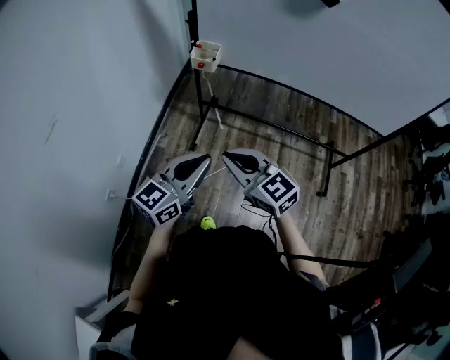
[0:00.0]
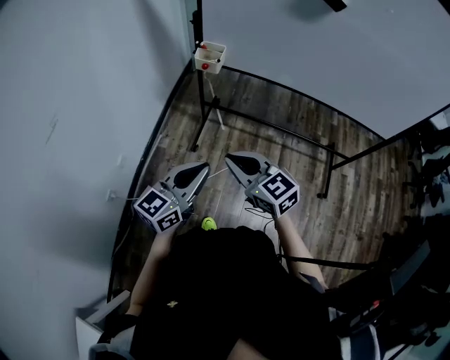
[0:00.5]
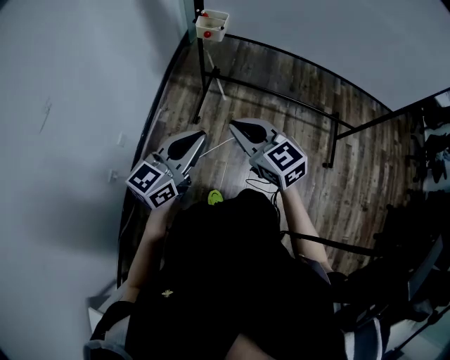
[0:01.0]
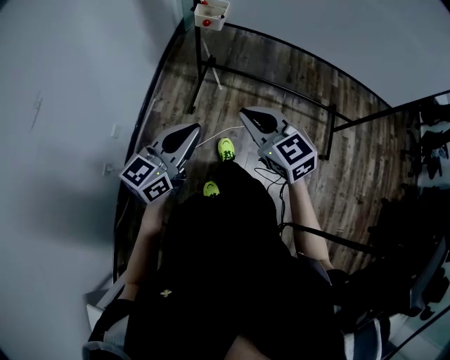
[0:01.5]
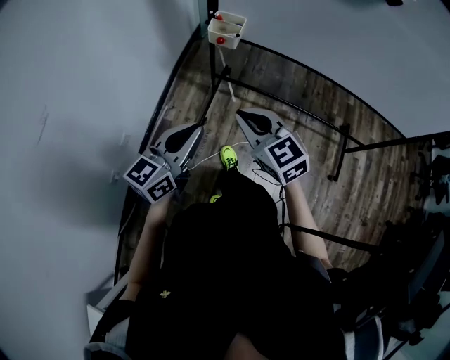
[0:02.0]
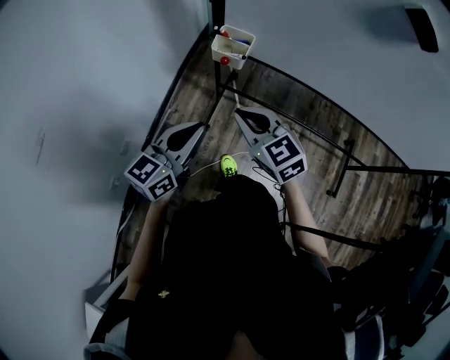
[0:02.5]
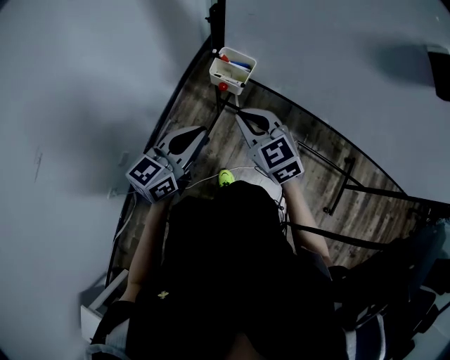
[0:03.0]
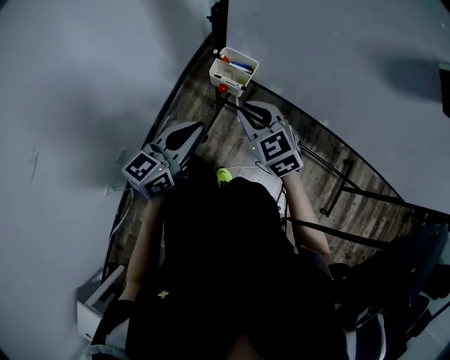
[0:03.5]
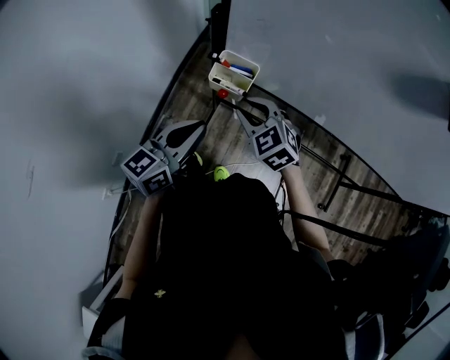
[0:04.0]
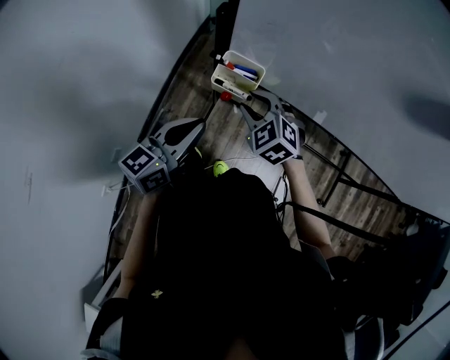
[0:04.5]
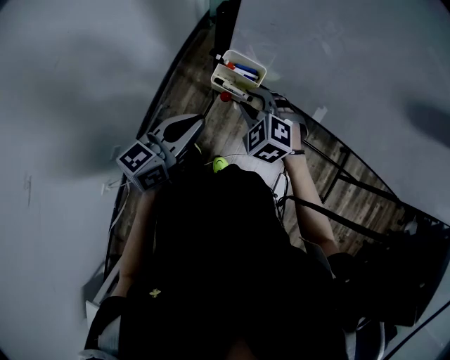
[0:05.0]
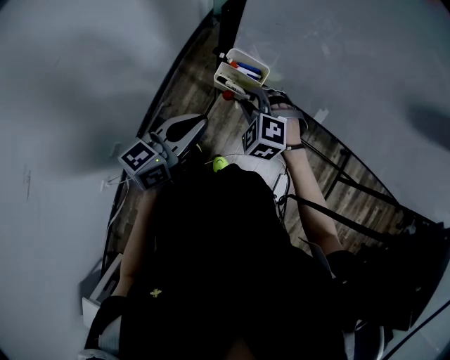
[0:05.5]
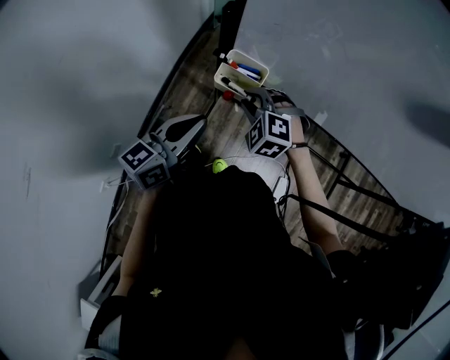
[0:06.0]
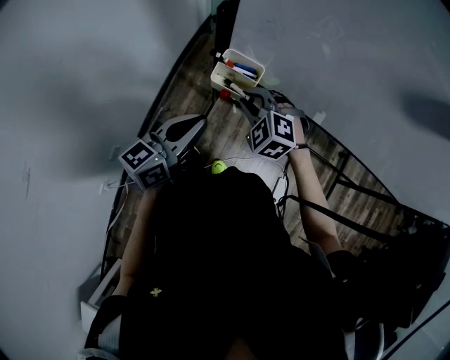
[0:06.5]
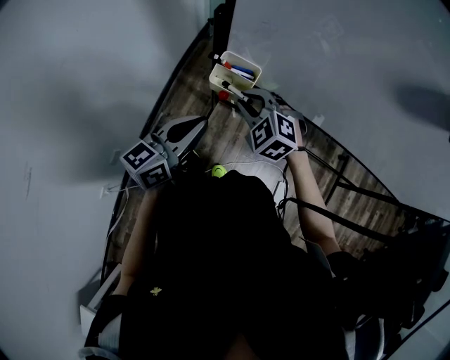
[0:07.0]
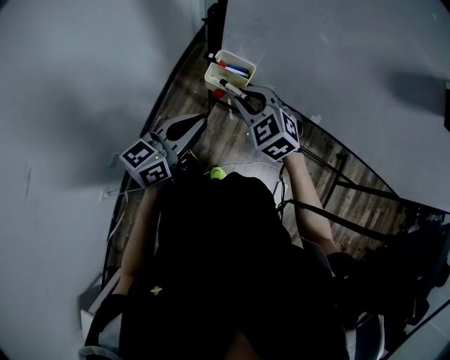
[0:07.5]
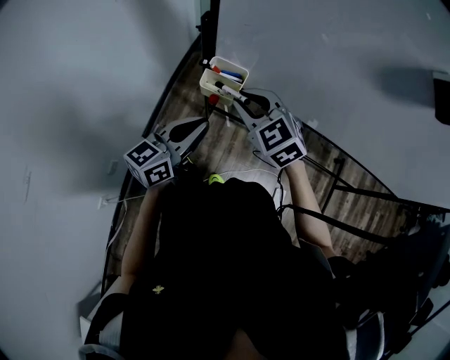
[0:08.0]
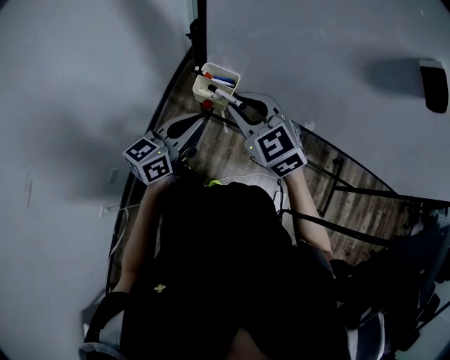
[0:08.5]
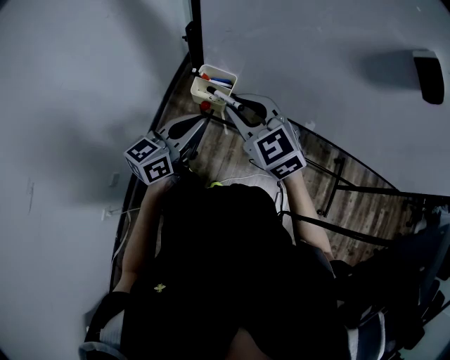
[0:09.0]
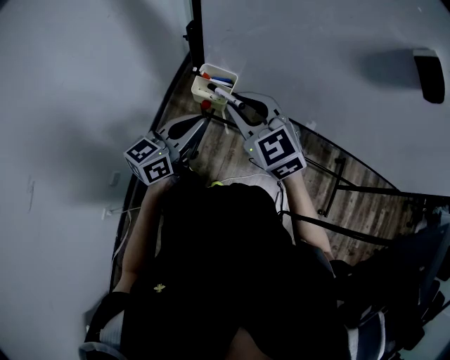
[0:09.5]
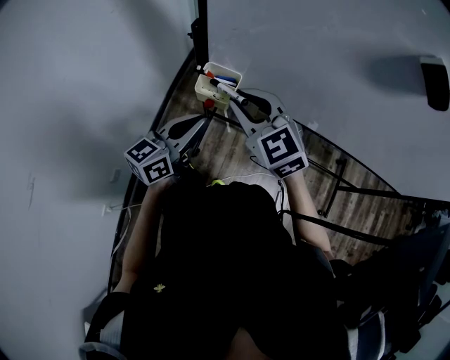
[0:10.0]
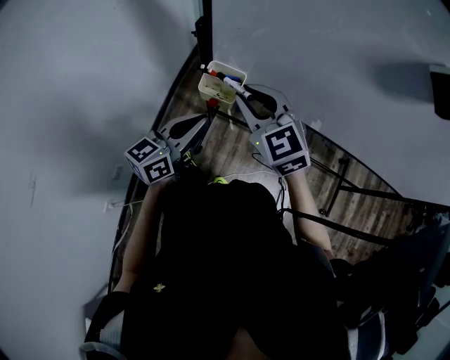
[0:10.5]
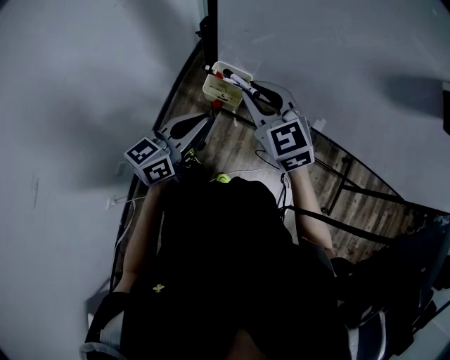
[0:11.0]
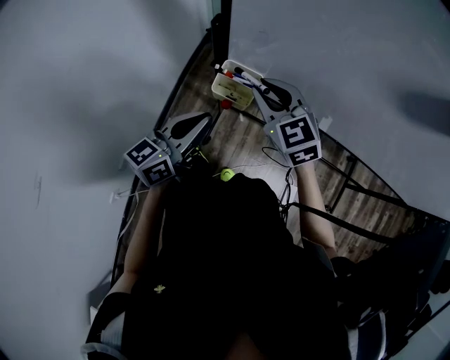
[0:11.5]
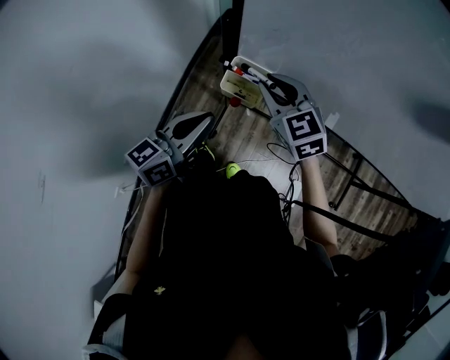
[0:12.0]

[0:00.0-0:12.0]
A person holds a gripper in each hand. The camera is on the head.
0:00.0 to 0:02.0: The left gripper is displaced forward and to the left by approximately 15 cm; the right gripper travels forward by roughly 15 cm.
0:02.0 to 0:04.0: The grippers both shift forward by some 25 cm. The right gripper turns by approximately 20 degrees.
0:04.0 to 0:06.0: The right gripper moves roughly 5 cm, and changes its angle by approximately 30 degrees.
0:06.0 to 0:08.0: The right gripper travels upward by some 10 cm, and turns by some 30 degrees.
0:08.0 to 0:10.0: The right gripper heads upward, covering approximately 5 cm.
0:10.0 to 0:12.0: The left gripper shifts by some 5 cm; the right gripper goes about 10 cm forward and downward.

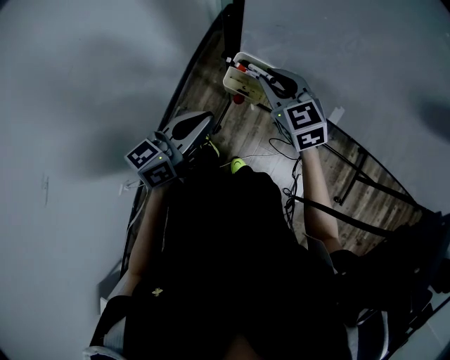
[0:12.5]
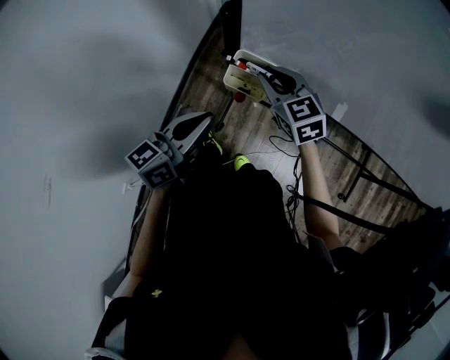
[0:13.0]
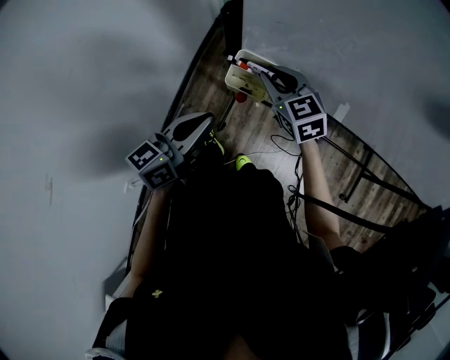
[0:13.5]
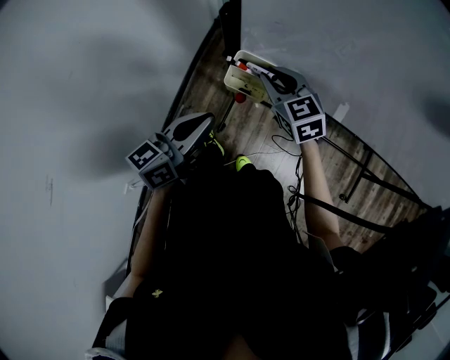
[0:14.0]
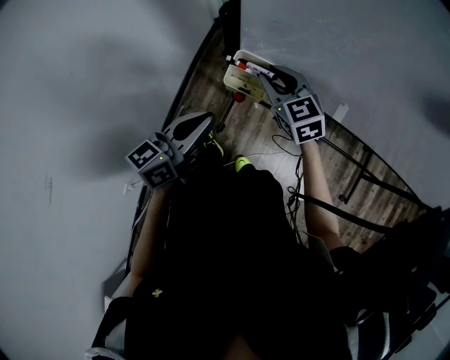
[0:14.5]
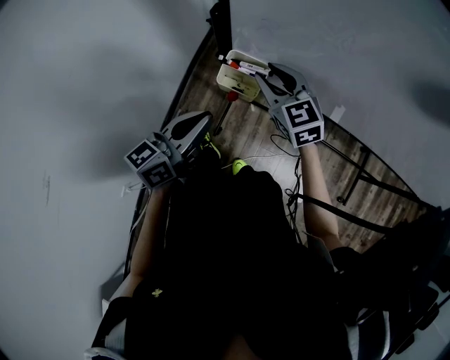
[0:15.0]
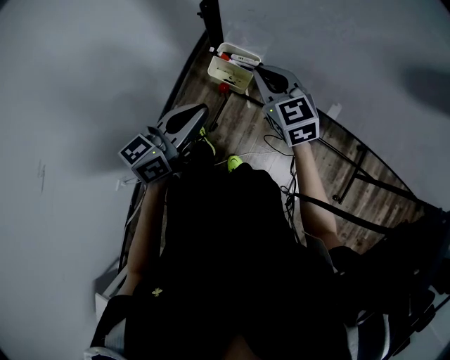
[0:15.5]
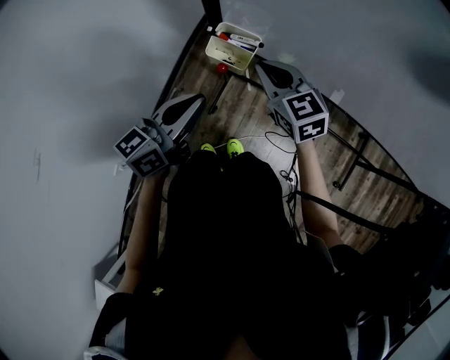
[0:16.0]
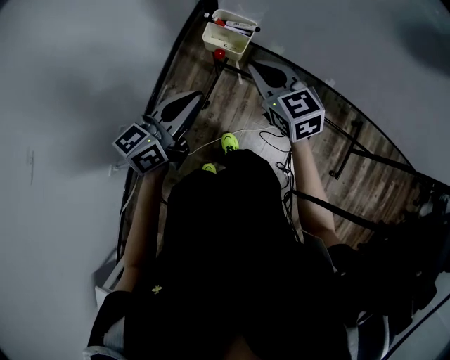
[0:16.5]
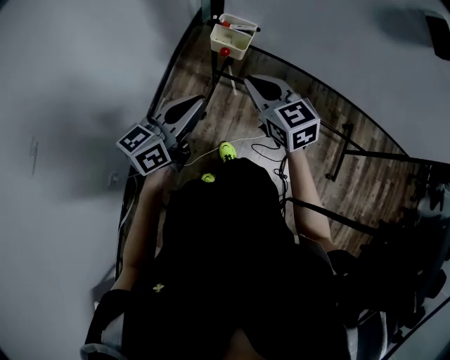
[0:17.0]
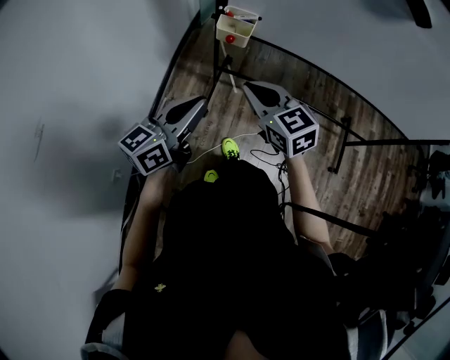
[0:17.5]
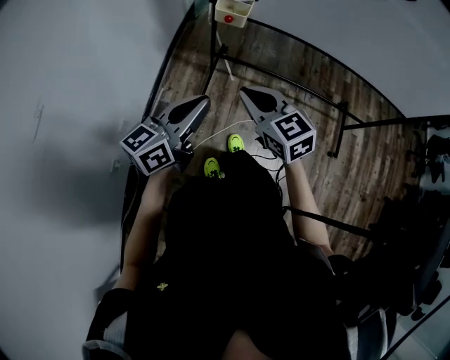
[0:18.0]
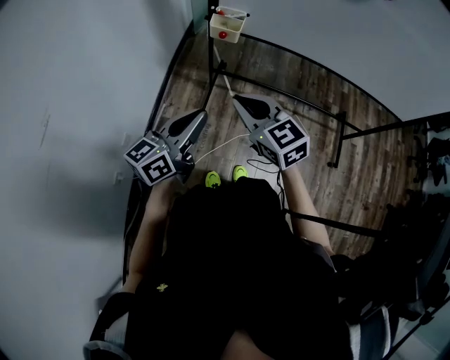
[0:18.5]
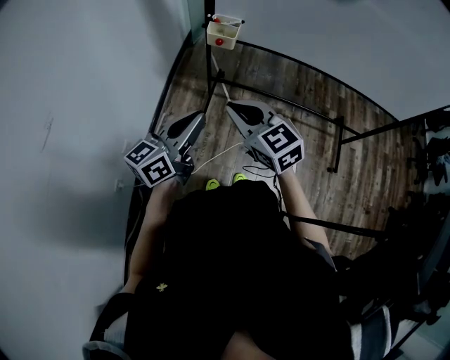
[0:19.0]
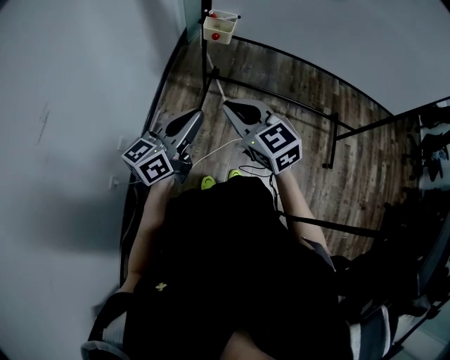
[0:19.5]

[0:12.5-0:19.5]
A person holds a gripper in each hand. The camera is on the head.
0:12.5 to 0:14.5: The grippers stay close to where they were, moving slightly.
0:14.5 to 0:16.0: The left gripper moves about 5 cm, while the right gripper goes about 5 cm backward, and closes.
0:16.0 to 0:17.5: Both grippers travel together backward, approximately 20 cm.
0:17.5 to 0:19.5: Both grippers move backward, roughly 10 cm.

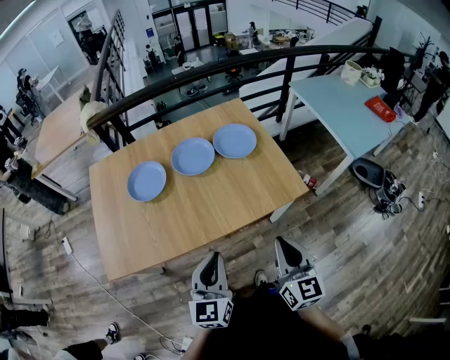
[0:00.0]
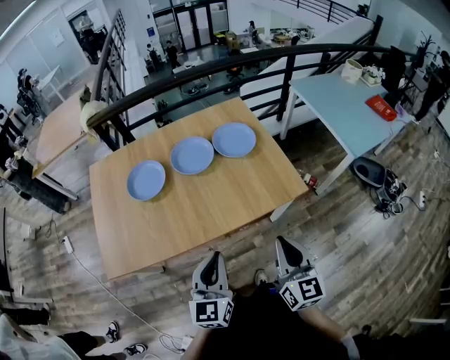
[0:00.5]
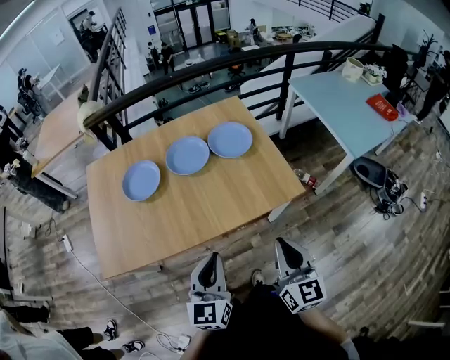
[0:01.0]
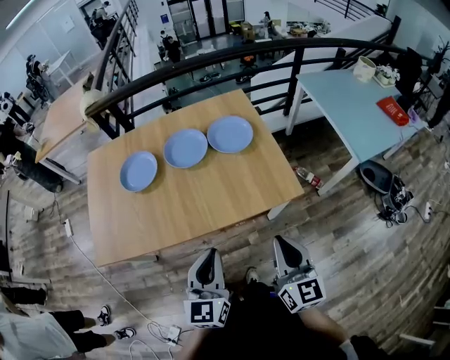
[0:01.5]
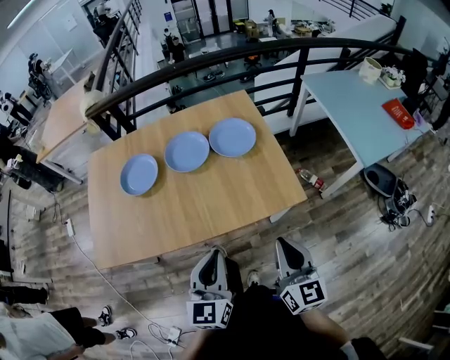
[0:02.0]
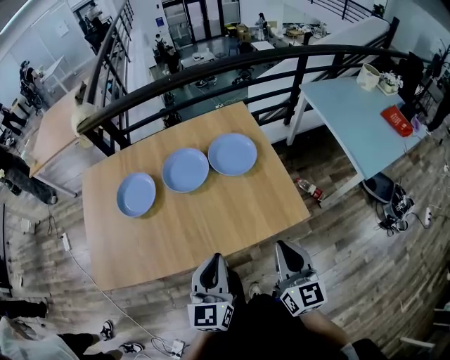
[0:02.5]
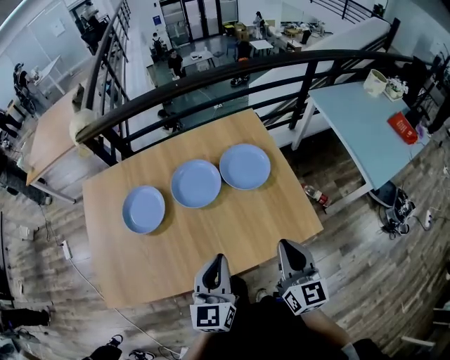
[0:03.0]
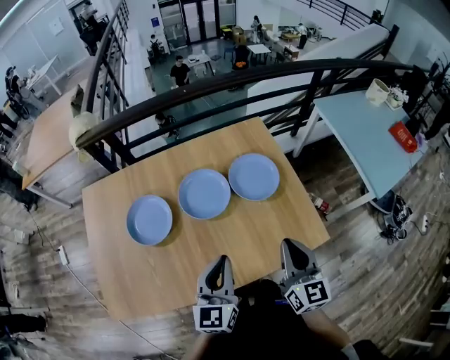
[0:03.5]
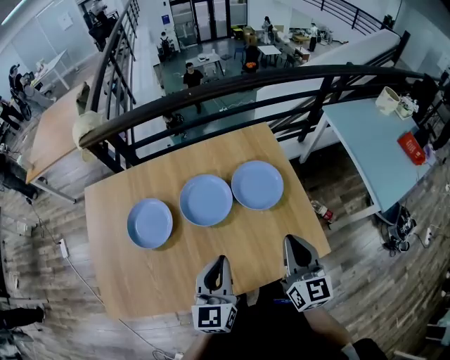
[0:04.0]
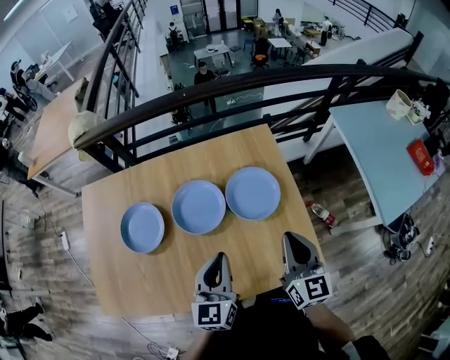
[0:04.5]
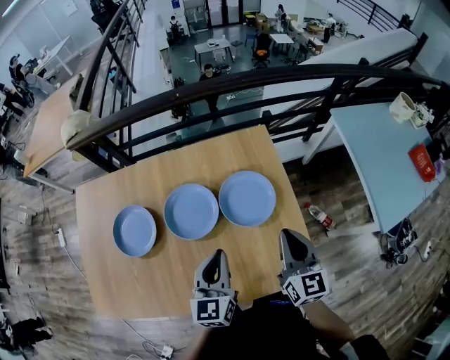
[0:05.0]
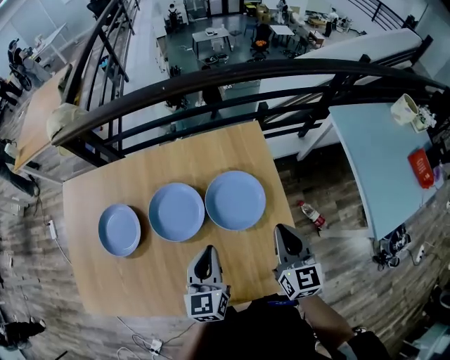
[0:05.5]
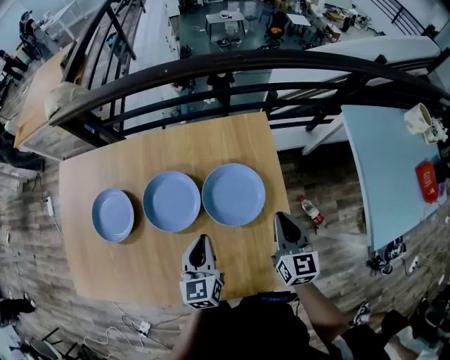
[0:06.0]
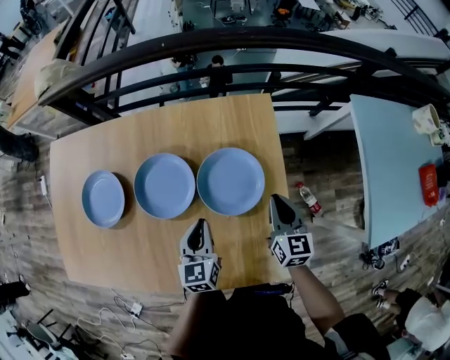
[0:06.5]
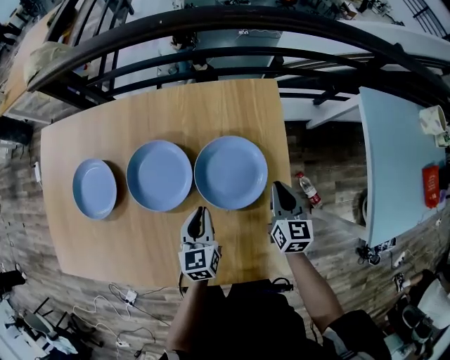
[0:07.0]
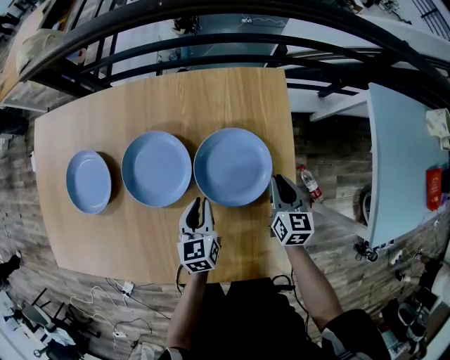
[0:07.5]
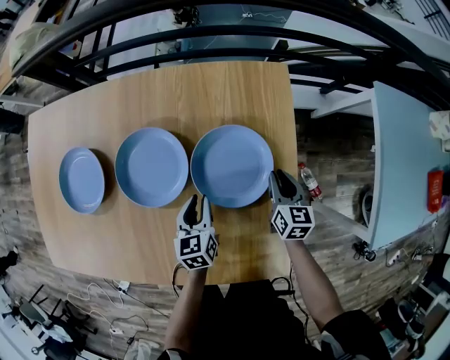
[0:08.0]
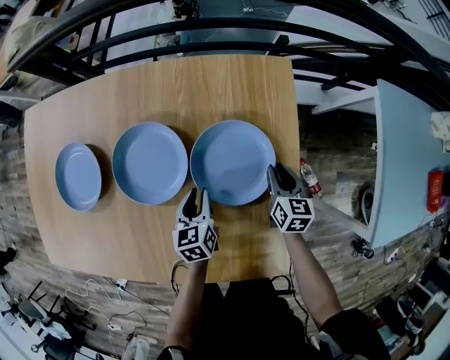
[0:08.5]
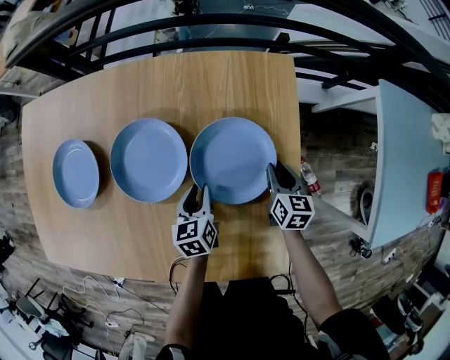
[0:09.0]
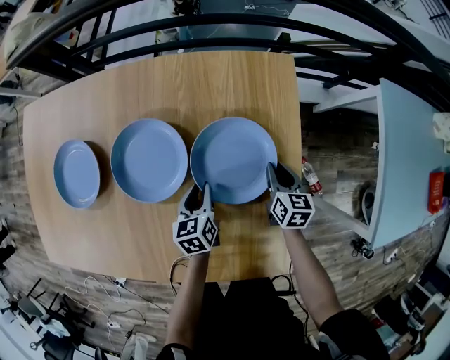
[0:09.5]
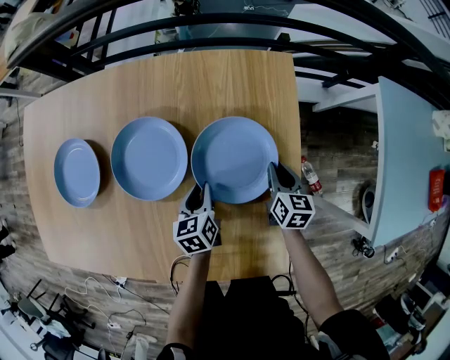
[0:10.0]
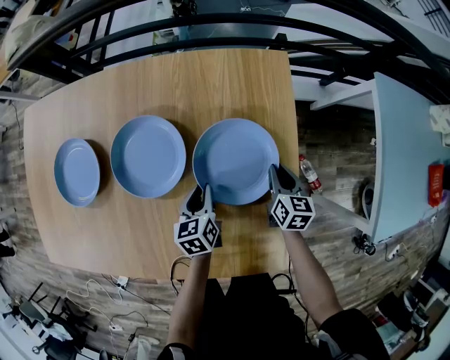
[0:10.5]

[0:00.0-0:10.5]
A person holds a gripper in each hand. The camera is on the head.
0:00.0 to 0:02.0: The right gripper heads to the right and forward, covering some 10 cm; the left gripper moves to the right, some 10 cm.
0:02.0 to 0:04.0: The left gripper goes roughly 25 cm forward and to the left. Meanwhile the right gripper goes some 25 cm forward.
0:04.0 to 0:06.5: The right gripper is displaced forward, downward and to the right by approximately 35 cm; the left gripper moves downward, forward and to the right, approximately 30 cm, and rotates approximately 20 degrees.
0:06.5 to 0:08.5: Both grippers travel together downward, some 15 cm. The left gripper opens.
0:08.5 to 0:10.5: The grippers stay close to where they were, moving slightly.
